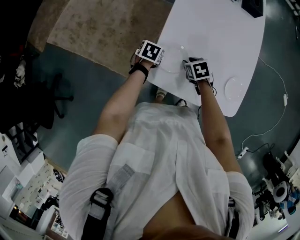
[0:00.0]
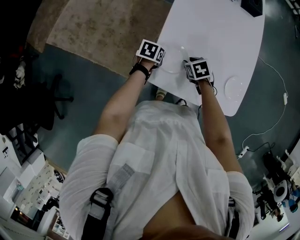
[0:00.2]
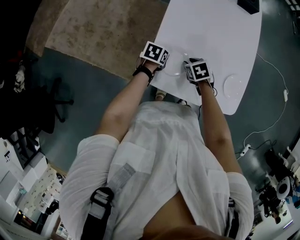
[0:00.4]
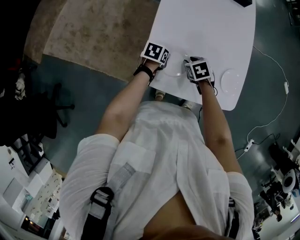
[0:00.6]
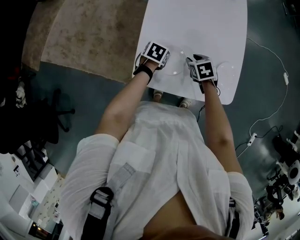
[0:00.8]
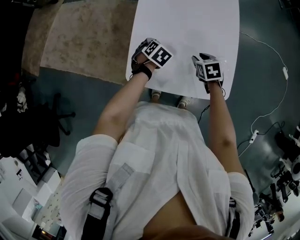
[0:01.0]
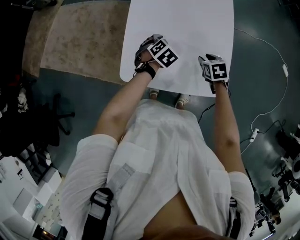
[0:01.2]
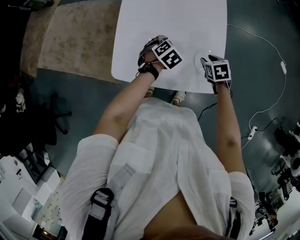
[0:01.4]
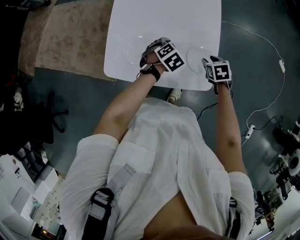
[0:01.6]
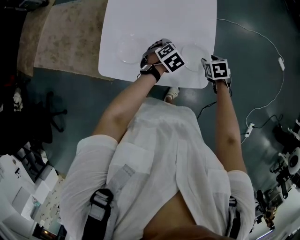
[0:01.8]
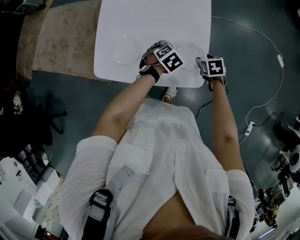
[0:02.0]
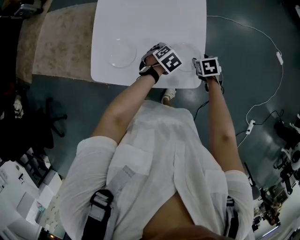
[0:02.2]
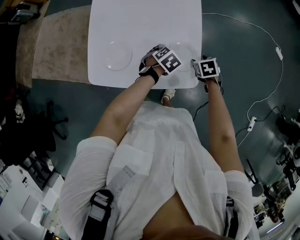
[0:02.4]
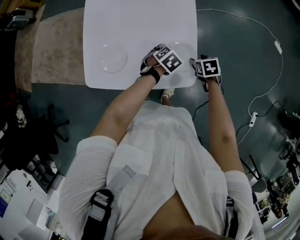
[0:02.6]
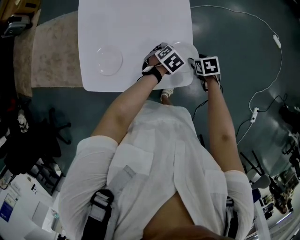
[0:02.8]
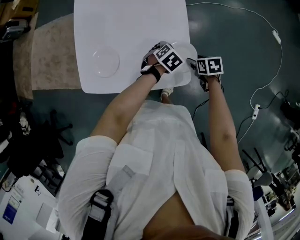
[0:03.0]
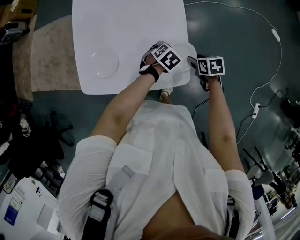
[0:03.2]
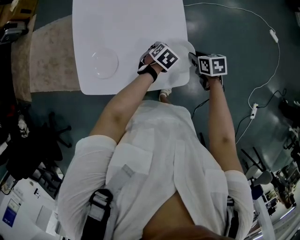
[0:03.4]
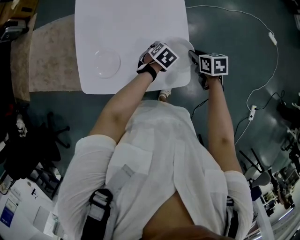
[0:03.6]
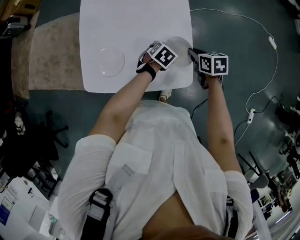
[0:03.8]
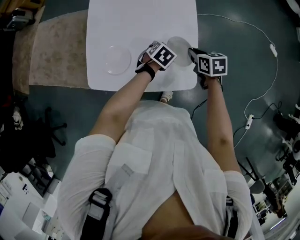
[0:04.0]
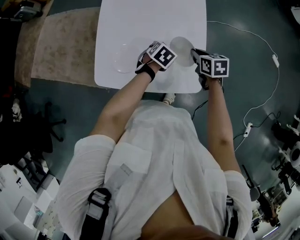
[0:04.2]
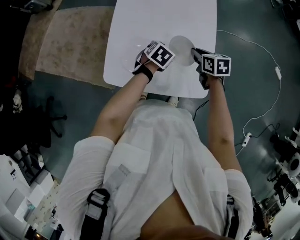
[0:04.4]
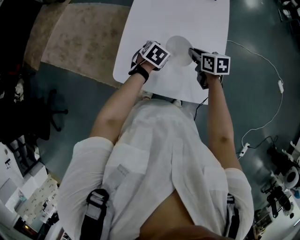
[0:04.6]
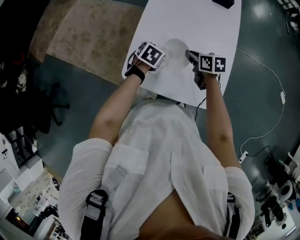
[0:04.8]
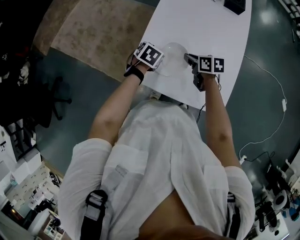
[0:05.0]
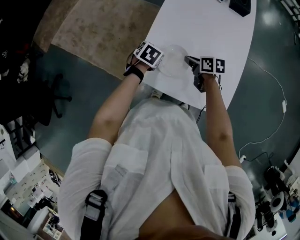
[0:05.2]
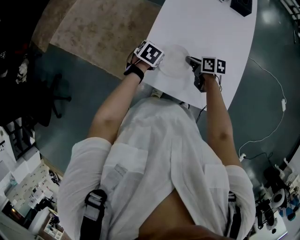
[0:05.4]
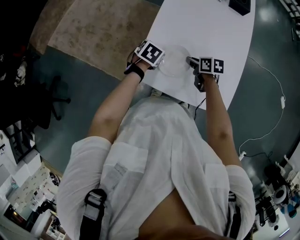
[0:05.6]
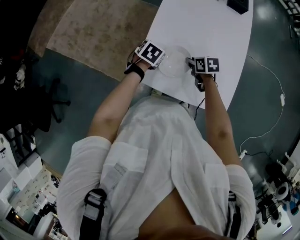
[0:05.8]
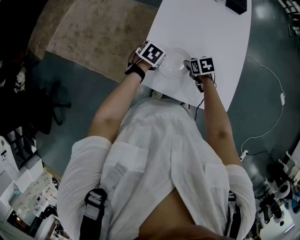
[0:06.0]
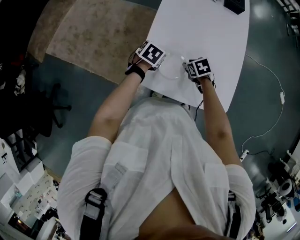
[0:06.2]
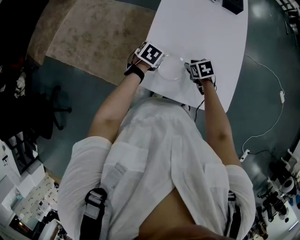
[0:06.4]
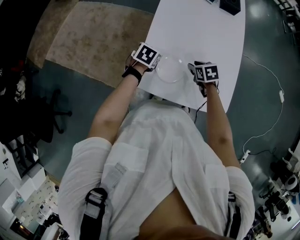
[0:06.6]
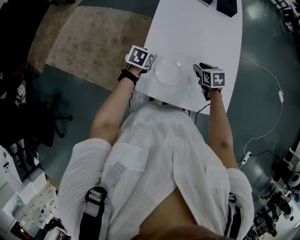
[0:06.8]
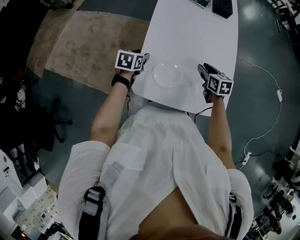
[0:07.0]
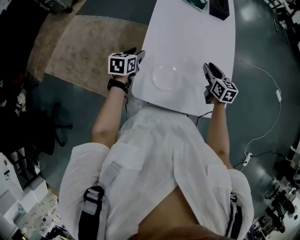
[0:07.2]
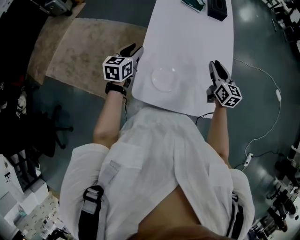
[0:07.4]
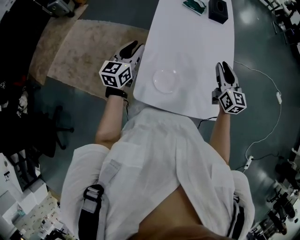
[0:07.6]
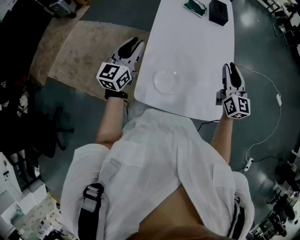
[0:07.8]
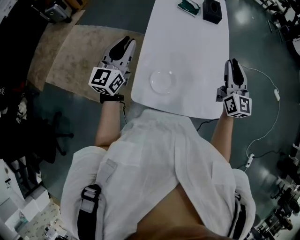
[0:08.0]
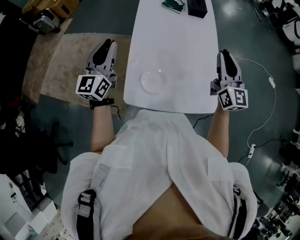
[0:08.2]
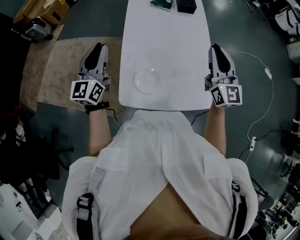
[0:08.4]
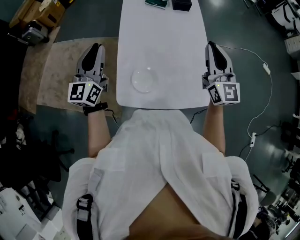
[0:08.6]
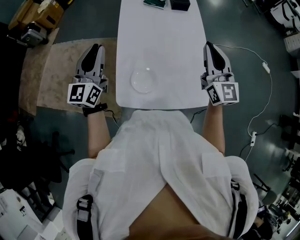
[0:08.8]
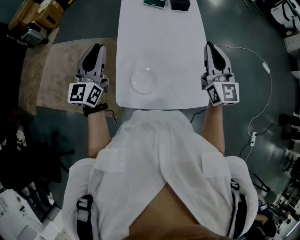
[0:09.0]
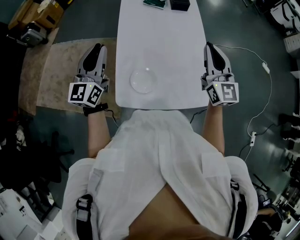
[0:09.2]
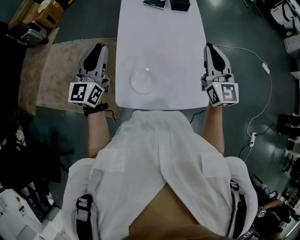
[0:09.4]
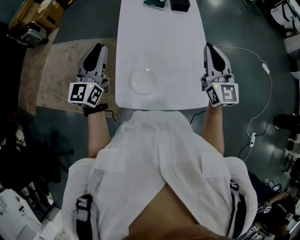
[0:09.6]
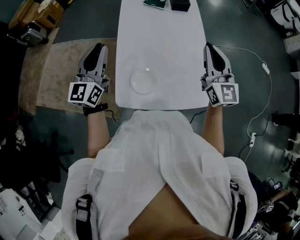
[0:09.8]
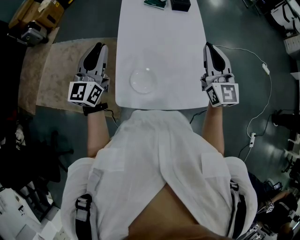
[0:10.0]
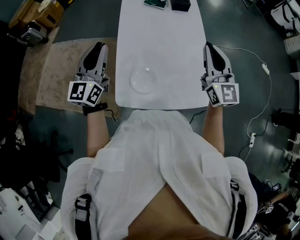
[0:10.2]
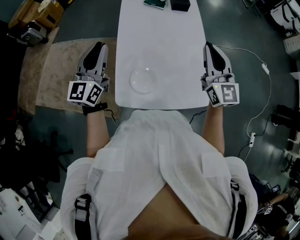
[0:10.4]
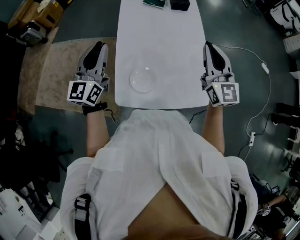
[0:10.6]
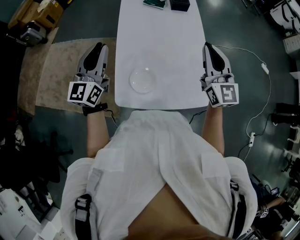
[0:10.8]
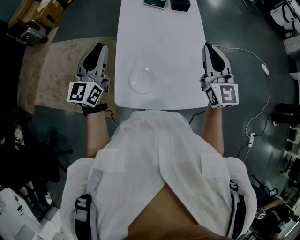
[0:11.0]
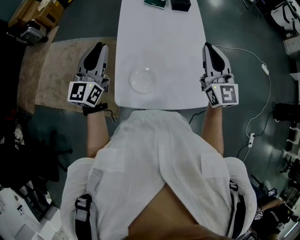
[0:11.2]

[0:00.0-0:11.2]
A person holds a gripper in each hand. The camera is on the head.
0:00.0 to 0:01.6: Both grippers move to the right, approximately 35 cm. The left gripper twists about 40 degrees clockwise, seen from behind, and opens its fingers.
0:01.6 to 0:03.2: The right gripper moves to the right, about 10 cm, and turns by approximately 30 degrees, while the left gripper moves to the right, some 15 cm.
0:03.2 to 0:04.8: The right gripper ends up approximately 35 cm from where it was, changes its angle by approximately 20 degrees, and closes. The left gripper shifts by about 35 cm, and turns by roughly 30 degrees.
0:04.8 to 0:06.4: The left gripper moves to the left, approximately 10 cm; the right gripper is displaced downward and to the left by roughly 10 cm, rotates roughly 30 degrees, and opens its fingers.
0:06.4 to 0:08.0: The left gripper goes roughly 30 cm upward, angles its fingers upward, by roughly 70 degrees, and closes up. Meanwhile the right gripper shifts approximately 35 cm upward and to the right, and tips its fingers upward by roughly 70 degrees.
0:08.0 to 0:11.2: The grippers move only a little.

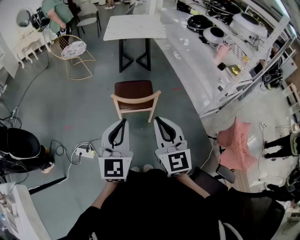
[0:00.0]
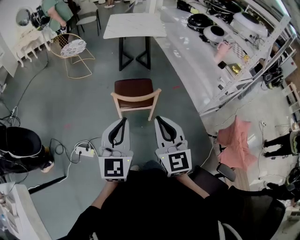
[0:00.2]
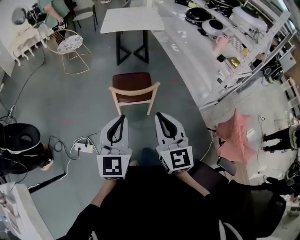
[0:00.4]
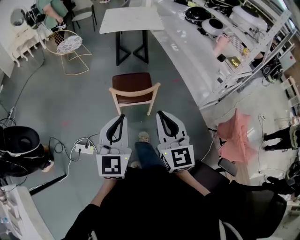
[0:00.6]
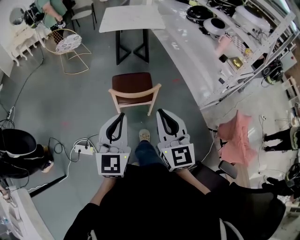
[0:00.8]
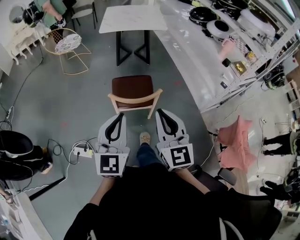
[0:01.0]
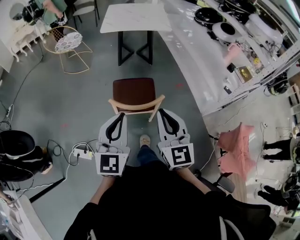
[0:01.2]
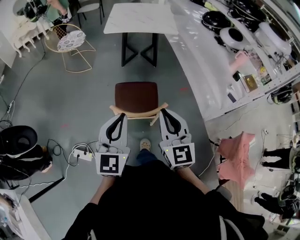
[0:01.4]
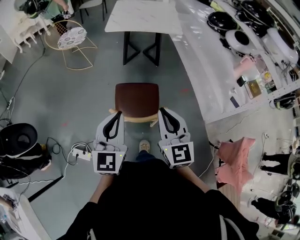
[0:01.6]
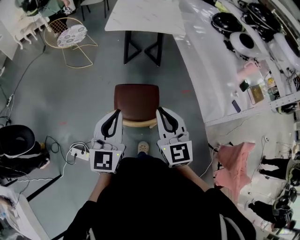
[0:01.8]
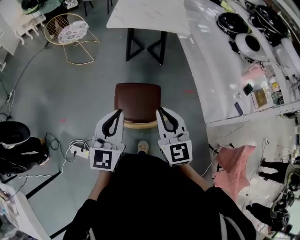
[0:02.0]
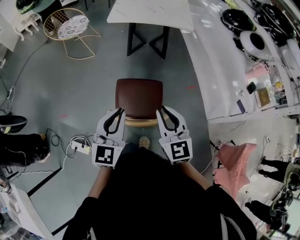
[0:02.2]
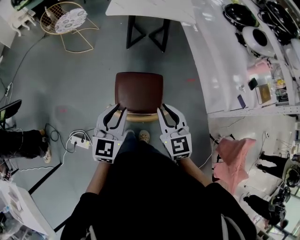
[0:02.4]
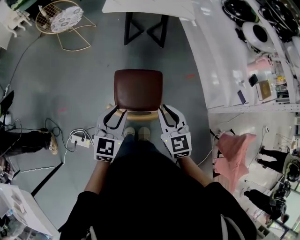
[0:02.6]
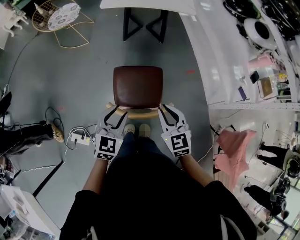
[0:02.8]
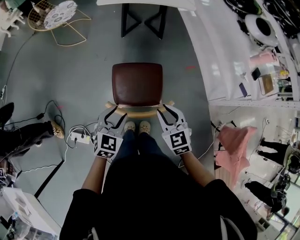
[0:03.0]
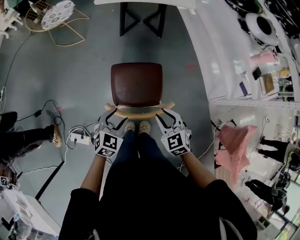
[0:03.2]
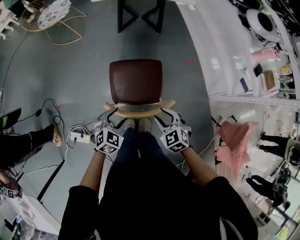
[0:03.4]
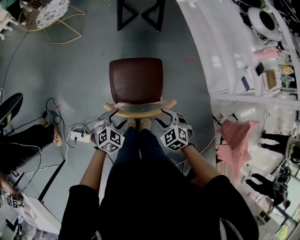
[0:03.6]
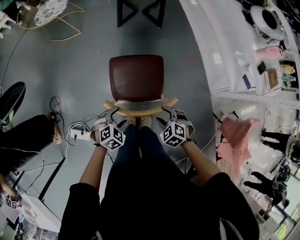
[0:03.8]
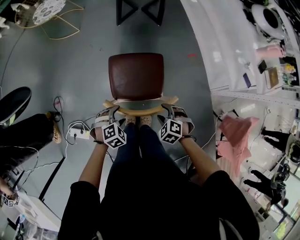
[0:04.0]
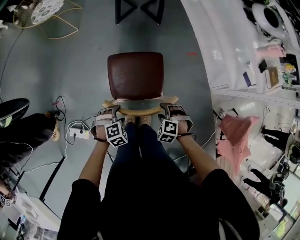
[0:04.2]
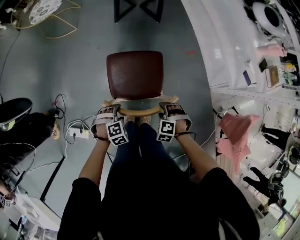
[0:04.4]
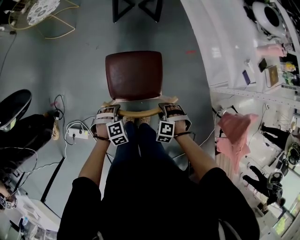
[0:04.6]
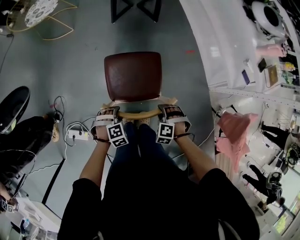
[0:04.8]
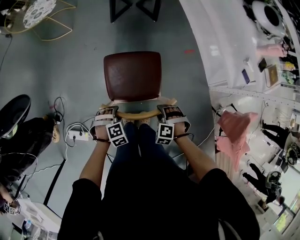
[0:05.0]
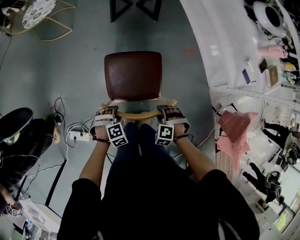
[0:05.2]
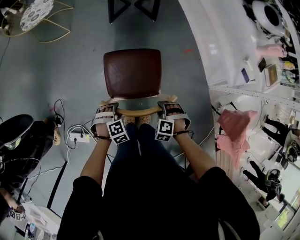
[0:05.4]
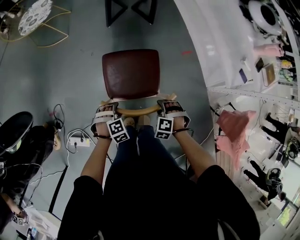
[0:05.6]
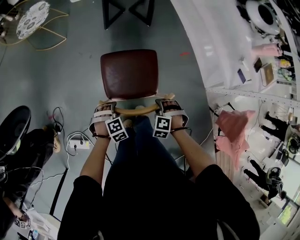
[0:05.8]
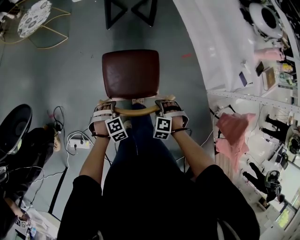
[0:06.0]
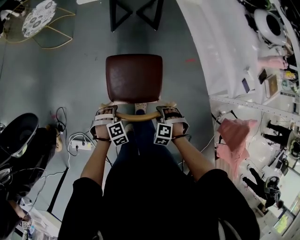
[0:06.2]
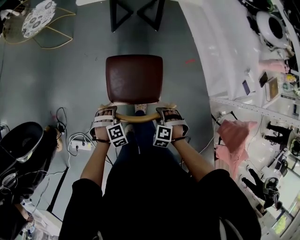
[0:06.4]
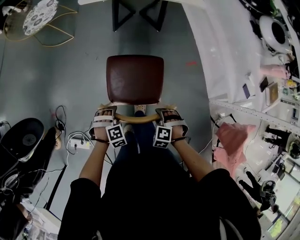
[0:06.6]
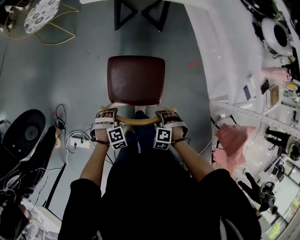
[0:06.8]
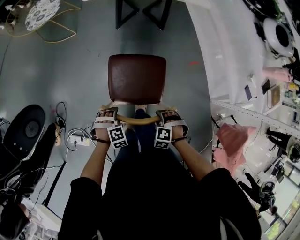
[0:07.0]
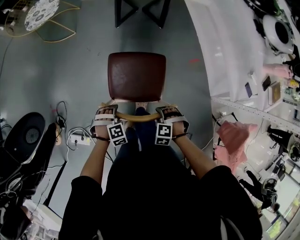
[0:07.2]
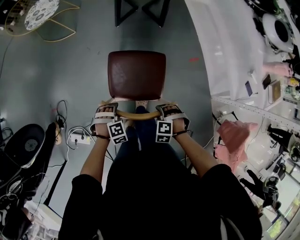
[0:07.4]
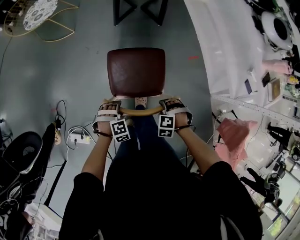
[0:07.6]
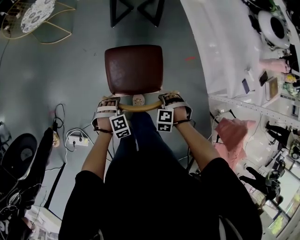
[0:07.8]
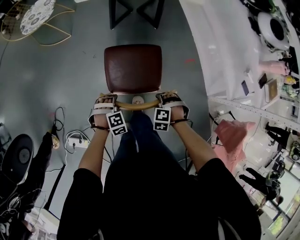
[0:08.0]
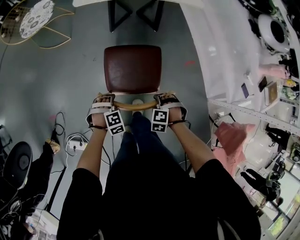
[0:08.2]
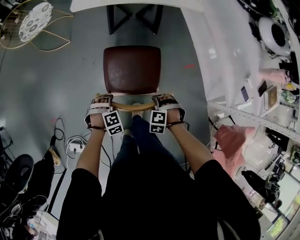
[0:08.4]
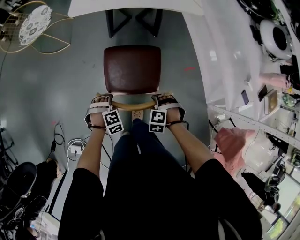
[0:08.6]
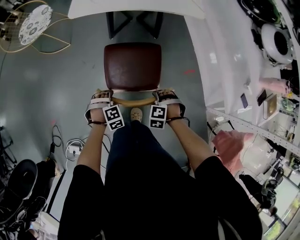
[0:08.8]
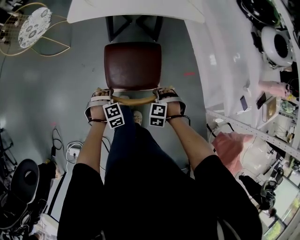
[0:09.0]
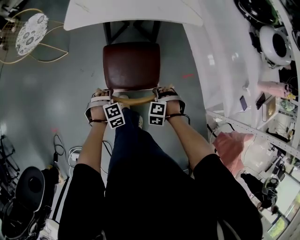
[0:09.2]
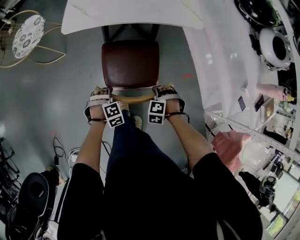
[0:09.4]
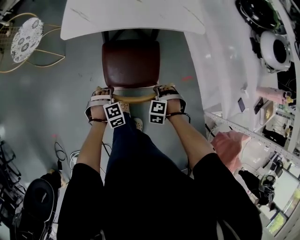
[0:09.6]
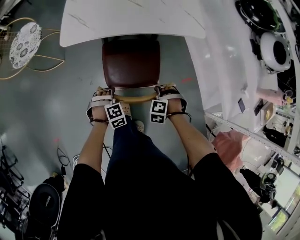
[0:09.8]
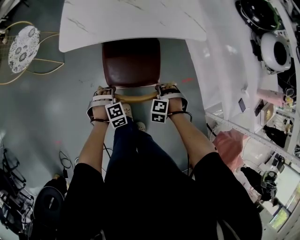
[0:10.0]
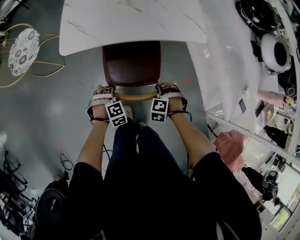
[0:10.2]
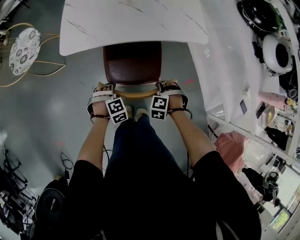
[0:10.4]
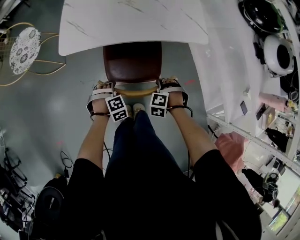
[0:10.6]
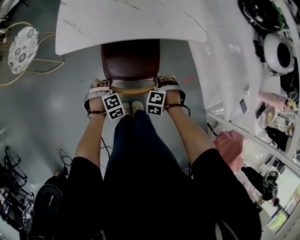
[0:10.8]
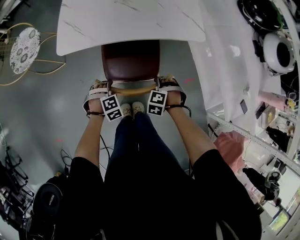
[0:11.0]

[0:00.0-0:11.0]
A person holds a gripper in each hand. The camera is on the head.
0:00.0 to 0:01.6: The two grippers go about 25 cm forward.
0:01.6 to 0:03.2: Both grippers move downward, some 25 cm. The left gripper tips its fingers downward by roughly 40 degrees, and opens up. The right gripper tilts its fingers approximately 40 degrees downward.
0:03.2 to 0:04.8: The grippers both shift downward by some 20 cm. The left gripper tilts its fingers roughly 30 degrees downward; the right gripper points its fingers about 30 degrees further downward, and opens up.
0:04.8 to 0:06.2: The right gripper changes place by some 10 cm. Meanwhile the left gripper ends up about 10 cm from where it was.
0:06.2 to 0:07.8: The right gripper changes place by about 5 cm.
0:07.8 to 0:09.4: The right gripper changes place by some 25 cm; the left gripper changes place by some 25 cm.
0:09.4 to 0:11.0: The left gripper shifts by roughly 15 cm, while the right gripper shifts by about 15 cm.

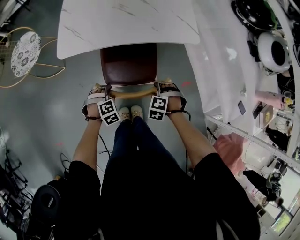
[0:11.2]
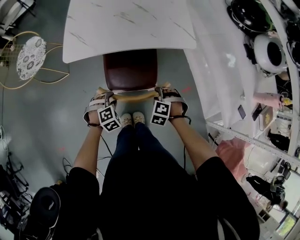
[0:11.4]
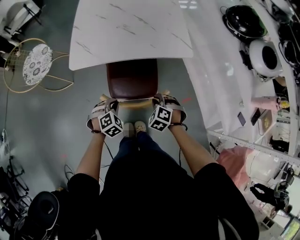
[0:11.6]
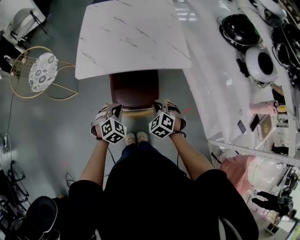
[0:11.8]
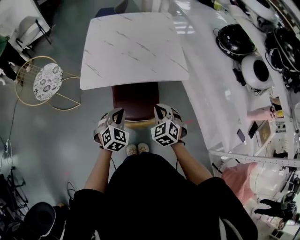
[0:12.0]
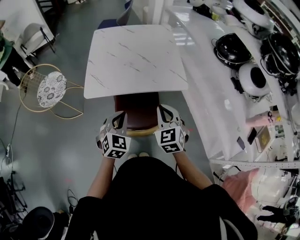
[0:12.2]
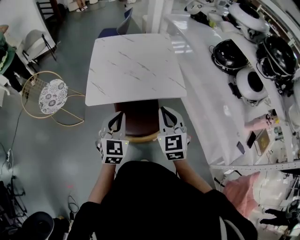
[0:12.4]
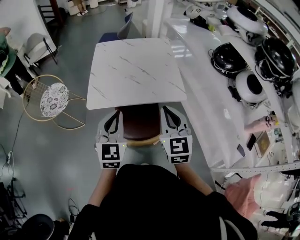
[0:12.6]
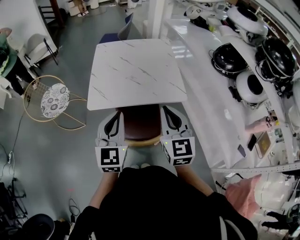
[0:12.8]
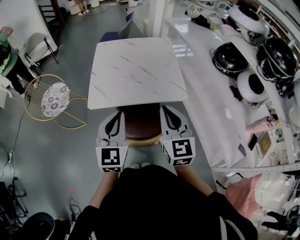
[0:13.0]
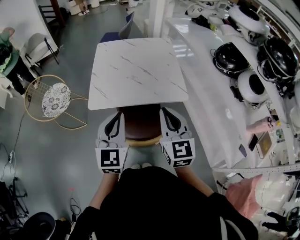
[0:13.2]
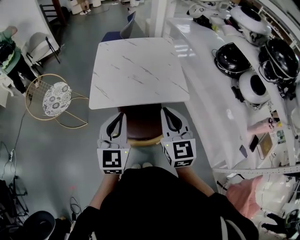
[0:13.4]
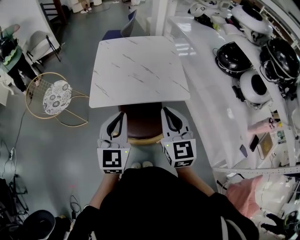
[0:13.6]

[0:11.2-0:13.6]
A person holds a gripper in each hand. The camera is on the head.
0:11.2 to 0:12.4: The grippers both shift upward by approximately 40 cm. The right gripper tips its fingers upward by some 60 degrees, and closes up, while the left gripper tips its fingers upward by roughly 50 degrees, and closes.
0:12.4 to 0:13.6: The grippers both shift upward by some 5 cm.
